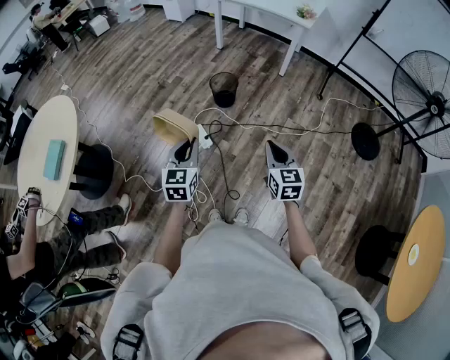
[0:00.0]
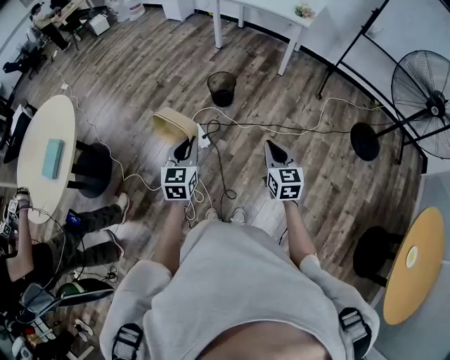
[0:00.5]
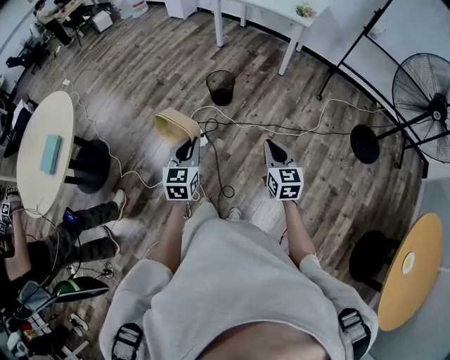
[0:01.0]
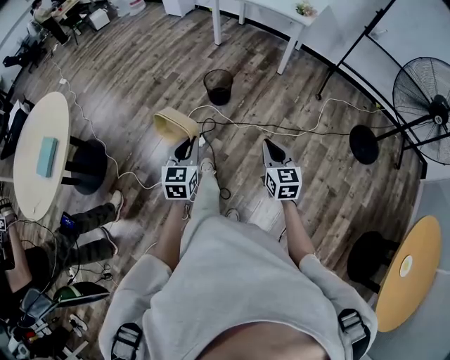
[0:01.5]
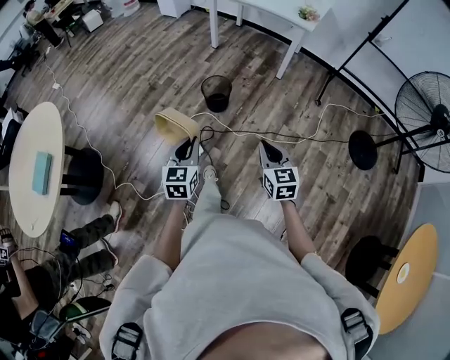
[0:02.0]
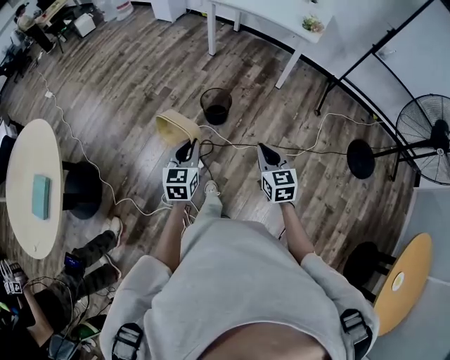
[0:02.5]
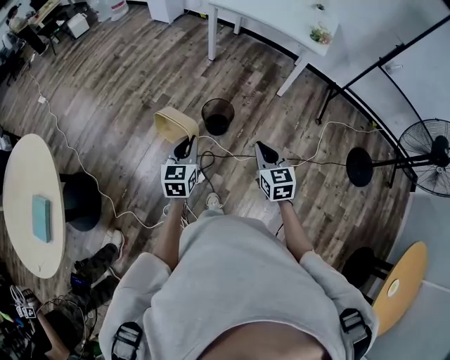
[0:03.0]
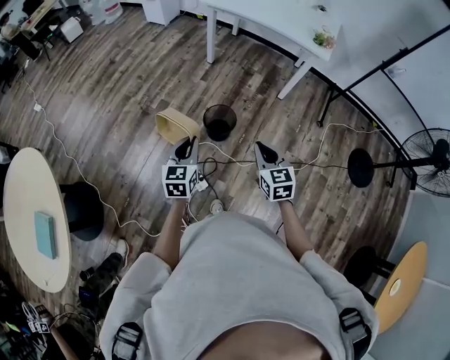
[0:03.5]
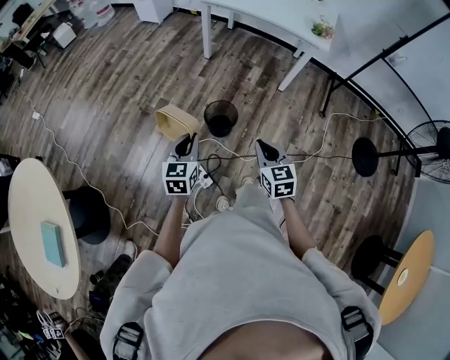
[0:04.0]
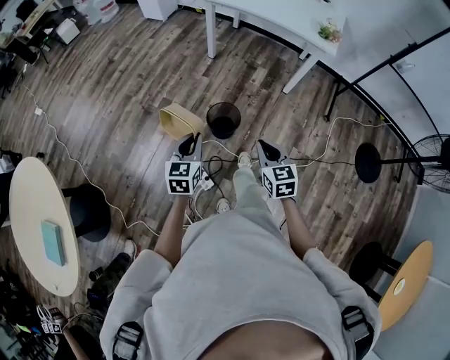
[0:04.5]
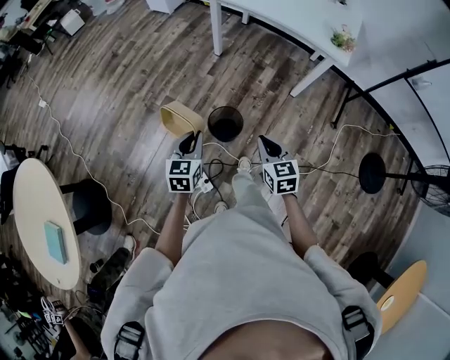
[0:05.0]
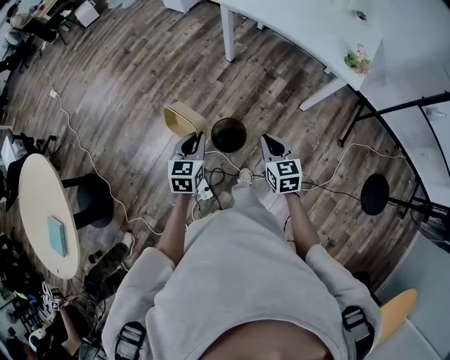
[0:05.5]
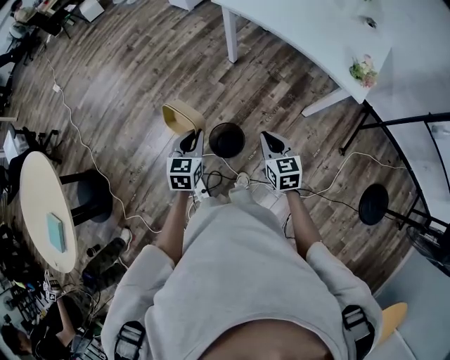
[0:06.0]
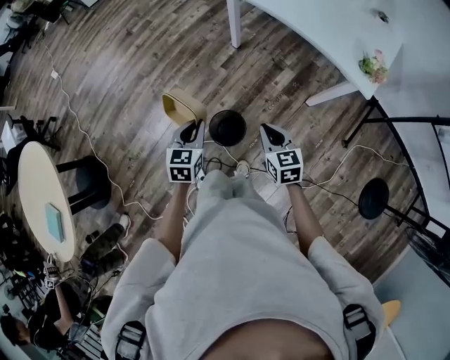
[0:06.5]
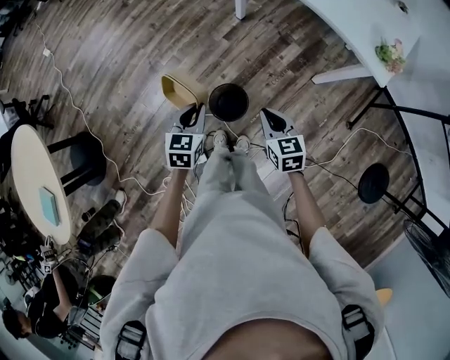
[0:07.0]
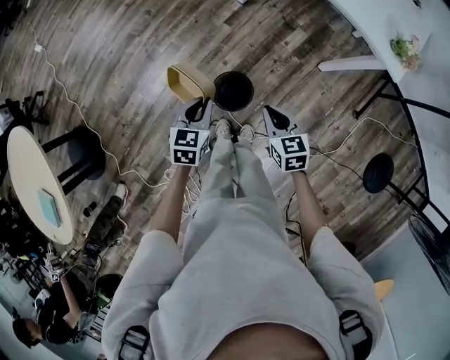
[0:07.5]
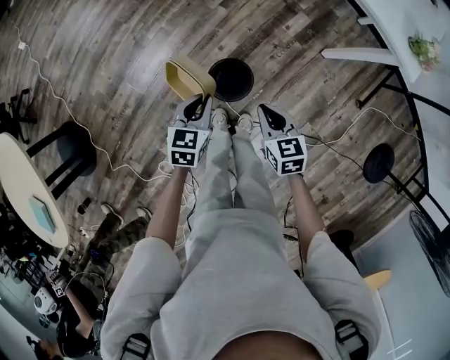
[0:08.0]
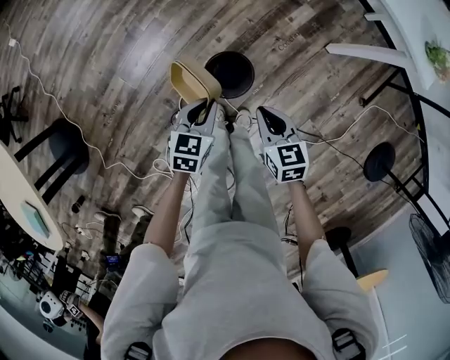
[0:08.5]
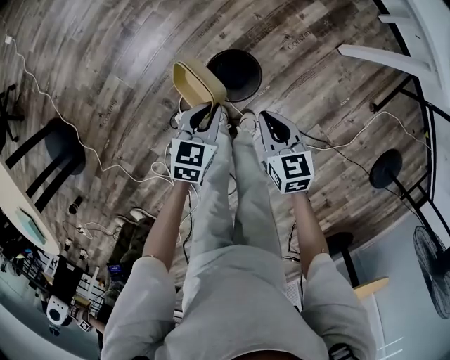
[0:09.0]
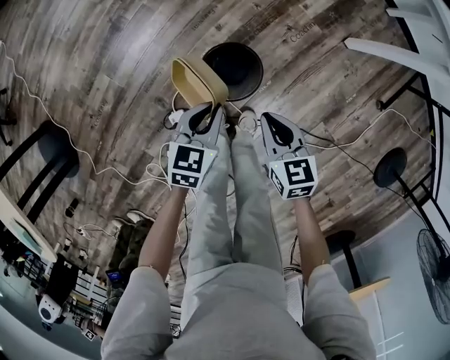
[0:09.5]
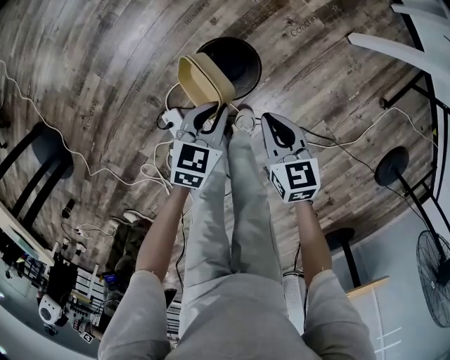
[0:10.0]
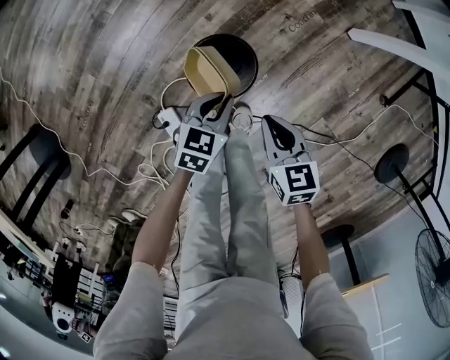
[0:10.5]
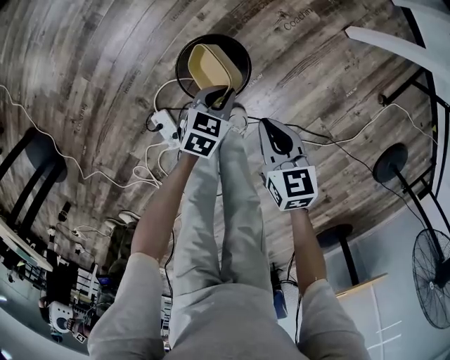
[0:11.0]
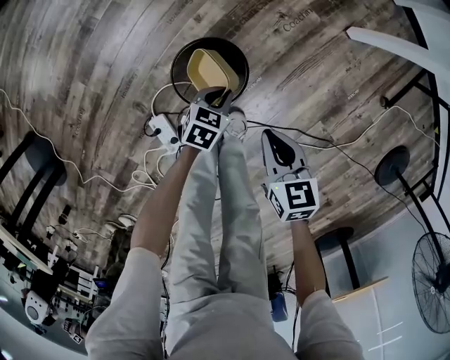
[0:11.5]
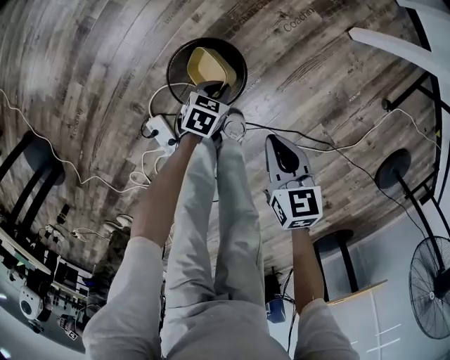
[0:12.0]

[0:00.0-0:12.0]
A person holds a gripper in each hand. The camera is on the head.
0:00.0 to 0:02.0: The right gripper moves forward, roughly 10 cm; the left gripper is displaced forward and to the right by about 15 cm.
0:02.0 to 0:04.0: The two grippers go roughly 30 cm forward.
0:04.0 to 0:06.0: The right gripper goes some 30 cm forward; the left gripper shifts some 25 cm forward and to the right.
0:06.0 to 0:08.0: The right gripper is displaced downward and to the left by approximately 15 cm, while the left gripper moves downward, approximately 15 cm.
0:08.0 to 0:10.0: The grippers both shift downward by about 20 cm.
0:10.0 to 0:12.0: The right gripper is displaced to the right by approximately 5 cm; the left gripper moves downward, roughly 20 cm, and rotates roughly 20 degrees.

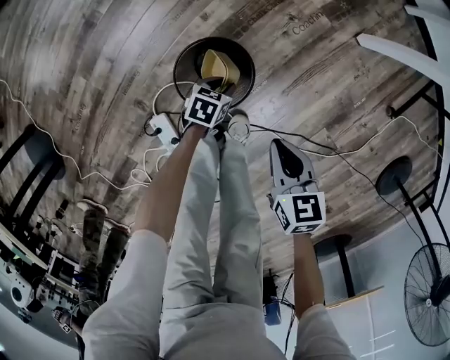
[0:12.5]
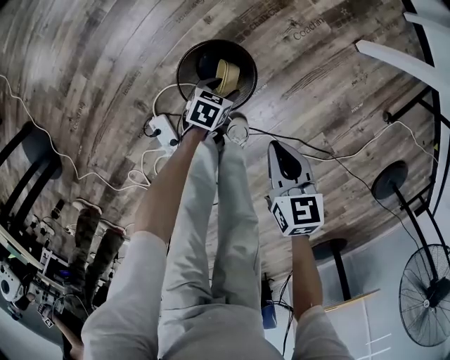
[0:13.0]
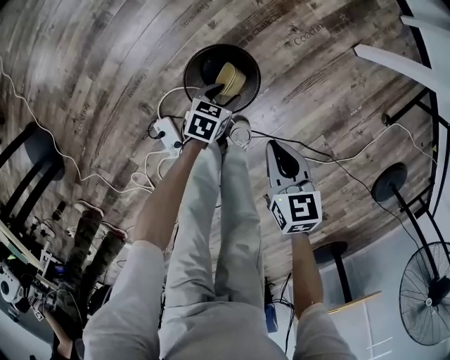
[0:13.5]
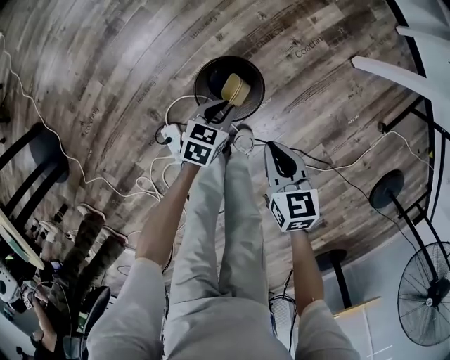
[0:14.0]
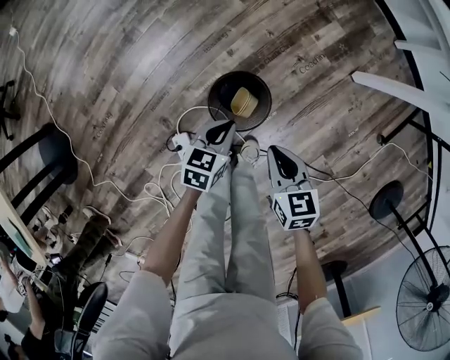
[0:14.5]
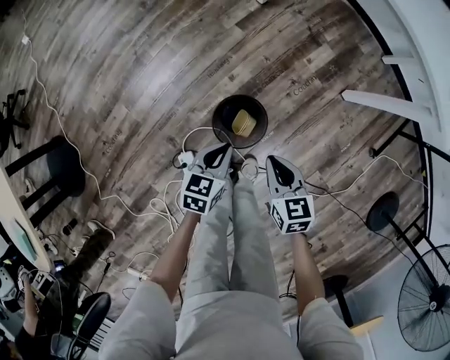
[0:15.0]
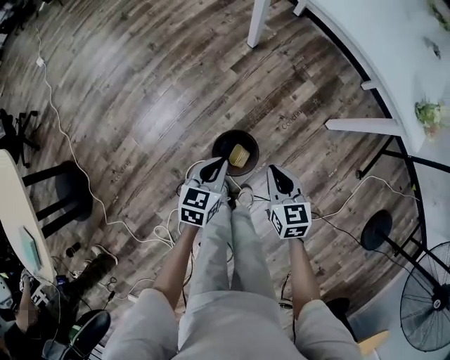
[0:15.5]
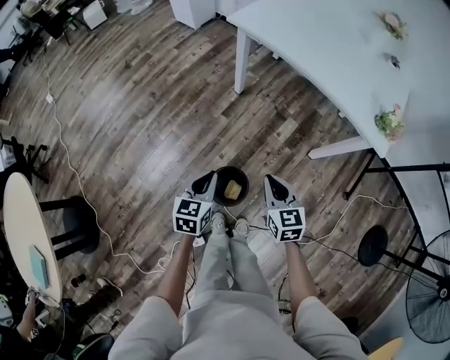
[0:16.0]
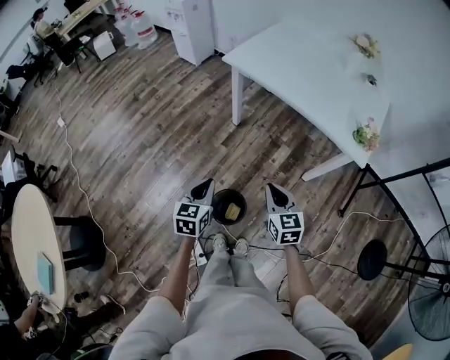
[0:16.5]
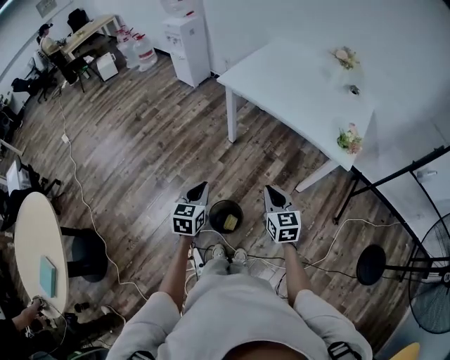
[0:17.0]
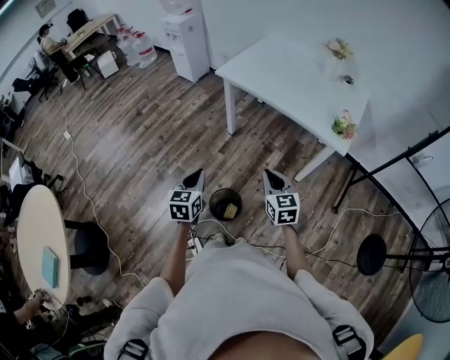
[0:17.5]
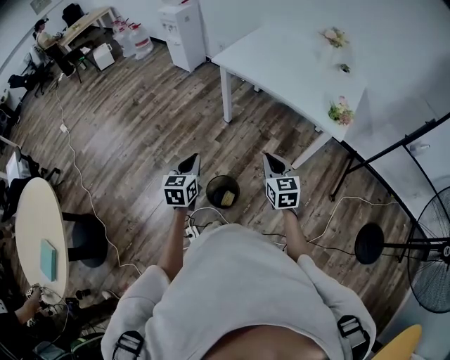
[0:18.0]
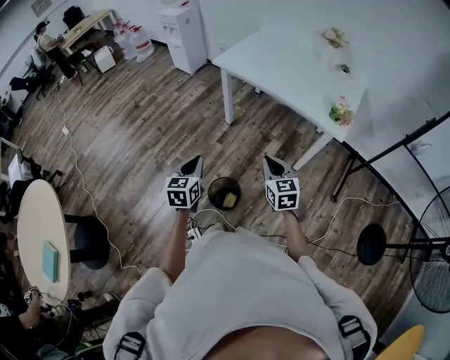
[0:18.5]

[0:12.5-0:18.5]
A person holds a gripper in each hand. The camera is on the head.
0:12.5 to 0:14.5: The left gripper shifts roughly 20 cm upward, rotates about 20 degrees, and closes. Meanwhile the right gripper moves to the left and upward, some 10 cm.
0:14.5 to 0:16.5: The grippers both shift upward by about 35 cm. The right gripper swivels some 30 degrees. The left gripper swivels approximately 20 degrees.
0:16.5 to 0:18.5: The grippers both shift upward and backward by about 10 cm.

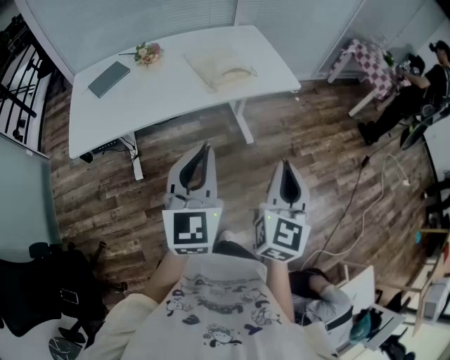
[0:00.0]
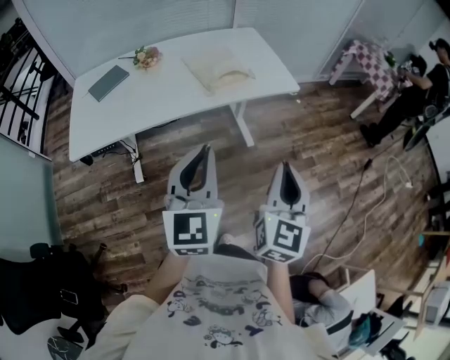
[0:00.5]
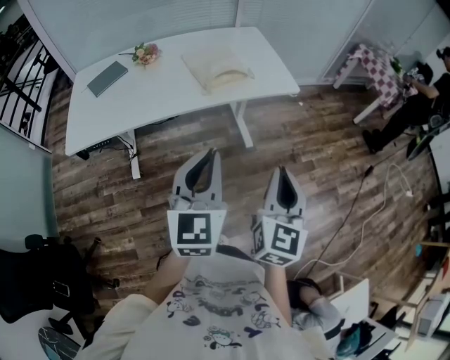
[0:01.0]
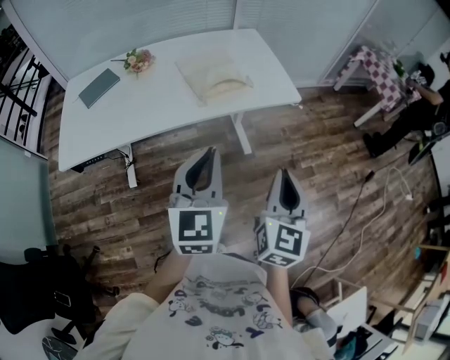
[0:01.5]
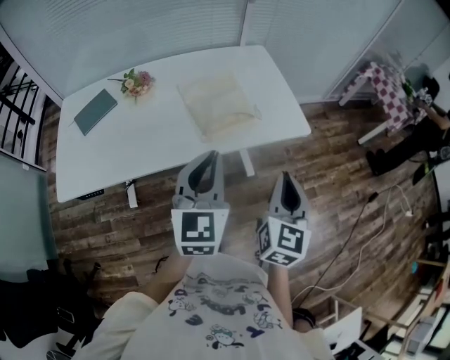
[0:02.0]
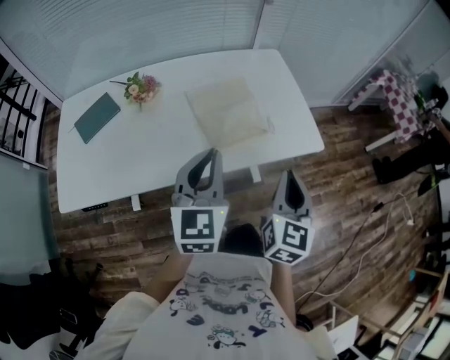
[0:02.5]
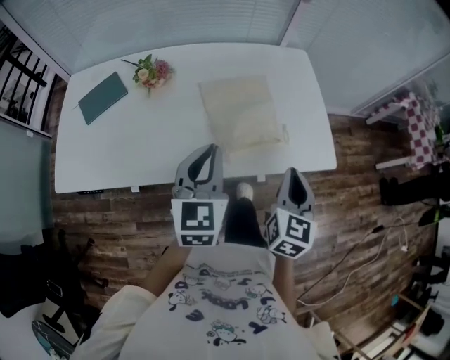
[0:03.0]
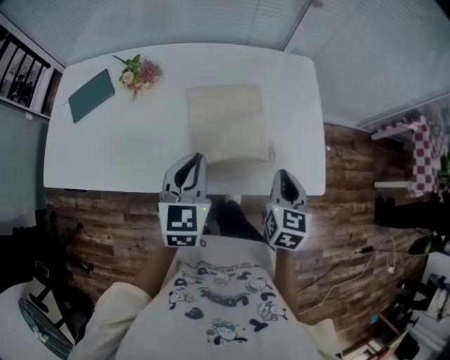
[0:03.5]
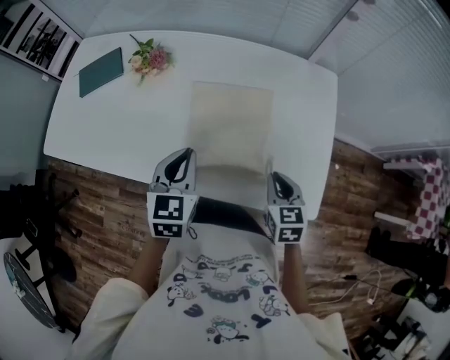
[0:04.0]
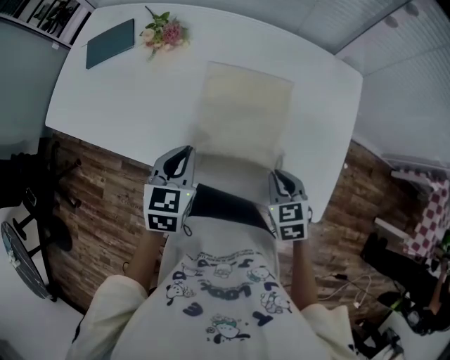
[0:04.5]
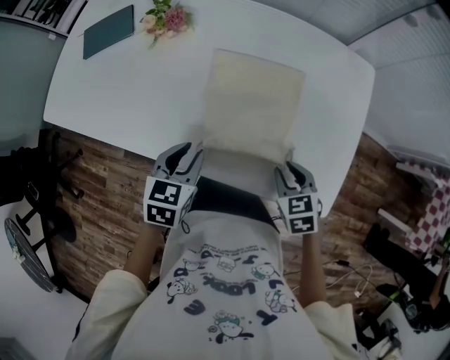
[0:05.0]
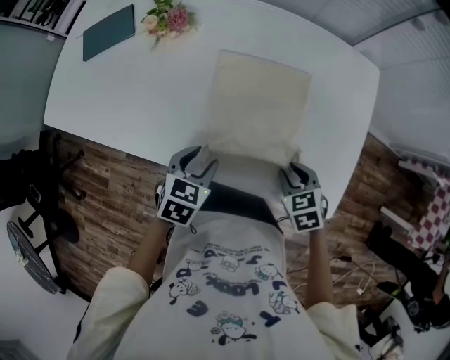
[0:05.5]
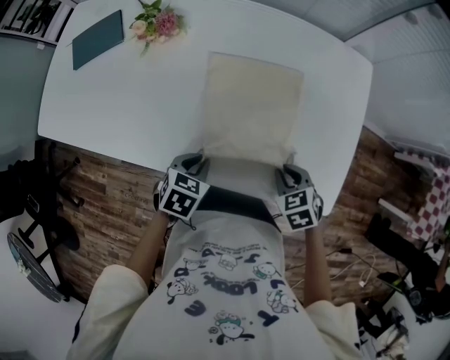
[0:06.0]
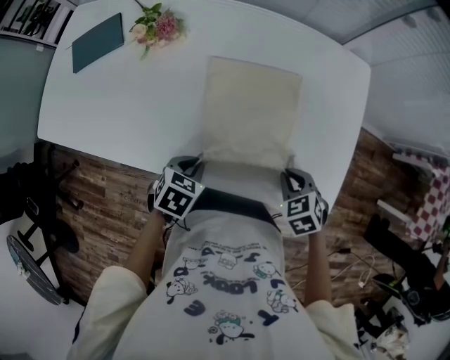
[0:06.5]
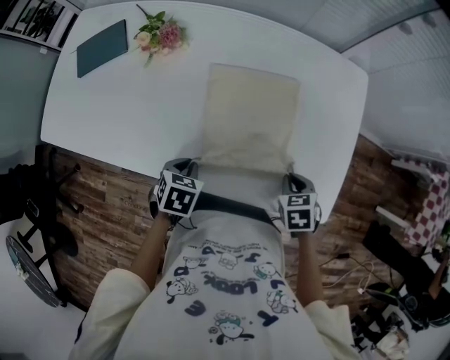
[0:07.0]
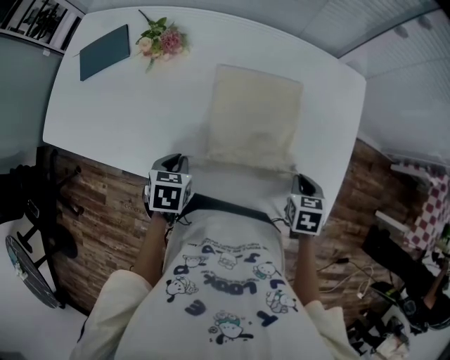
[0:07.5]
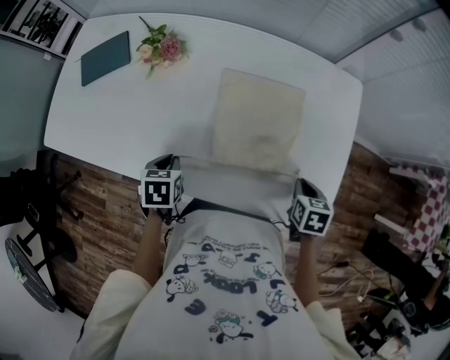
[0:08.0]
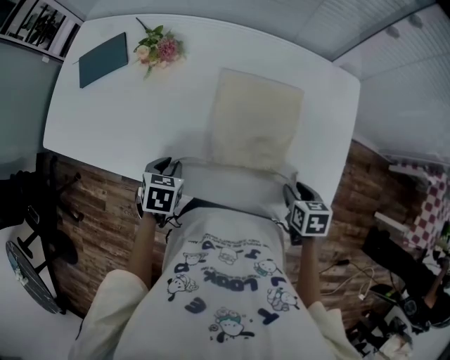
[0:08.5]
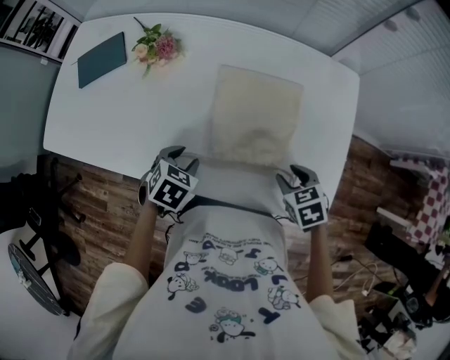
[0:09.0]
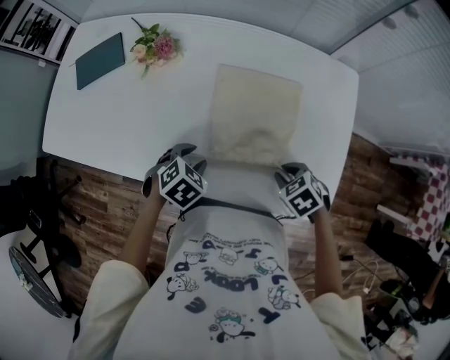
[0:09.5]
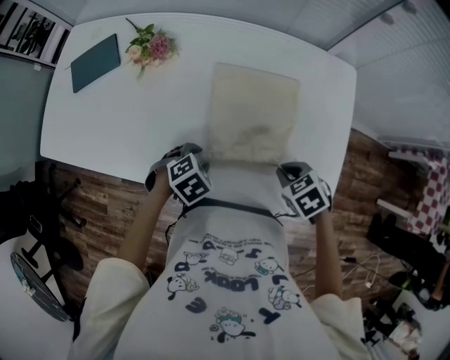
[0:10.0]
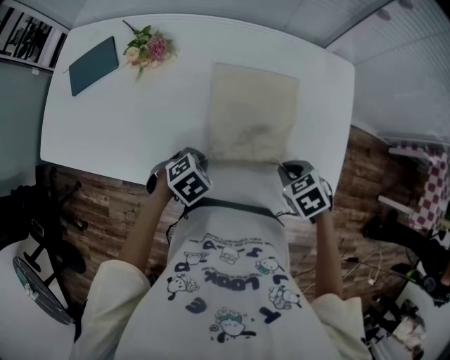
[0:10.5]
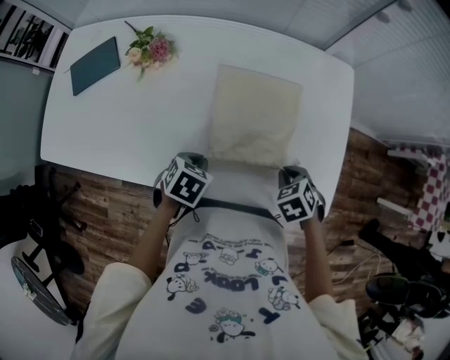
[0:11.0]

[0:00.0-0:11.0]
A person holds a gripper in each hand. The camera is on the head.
0:00.0 to 0:02.0: Both grippers travel together forward, roughly 25 cm.
0:02.0 to 0:03.5: The grippers both shift forward and downward by approximately 30 cm. The right gripper rotates roughly 30 degrees; the left gripper turns by some 20 degrees.
0:03.5 to 0:05.5: Both grippers move downward, approximately 15 cm. The right gripper angles its fingers downward, by approximately 30 degrees, and opens up; the left gripper tilts its fingers approximately 30 degrees downward, and opens its fingers.
0:05.5 to 0:07.5: The right gripper goes some 5 cm to the right, rotates approximately 30 degrees, and closes up. The left gripper moves to the left, about 5 cm, and closes up.
0:07.5 to 0:09.0: The left gripper rotates roughly 20 degrees, and opens up; the right gripper heads to the left, covering approximately 5 cm, turns by about 30 degrees, and opens up.
0:09.0 to 0:11.0: The left gripper closes up. Meanwhile the right gripper closes up.
